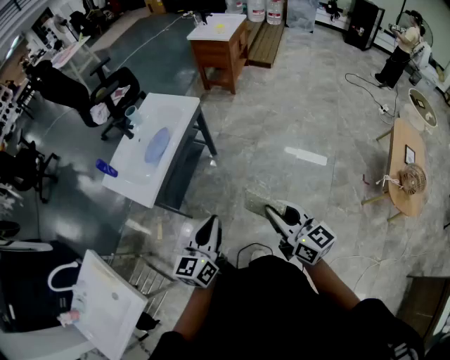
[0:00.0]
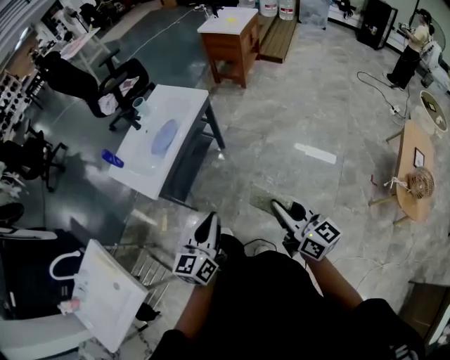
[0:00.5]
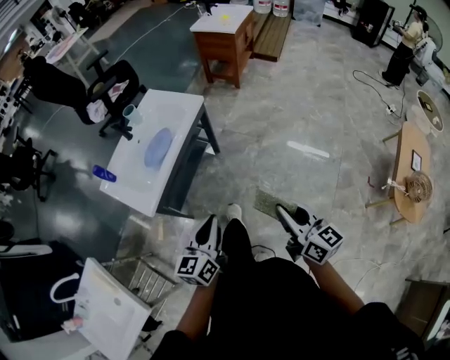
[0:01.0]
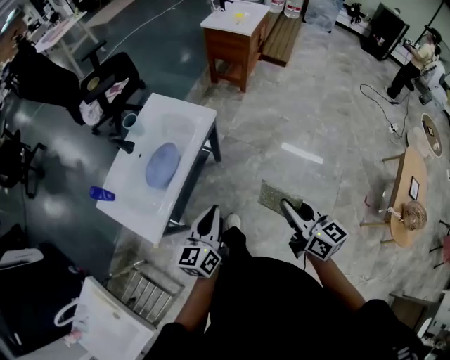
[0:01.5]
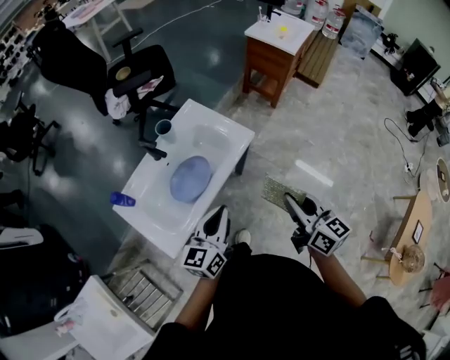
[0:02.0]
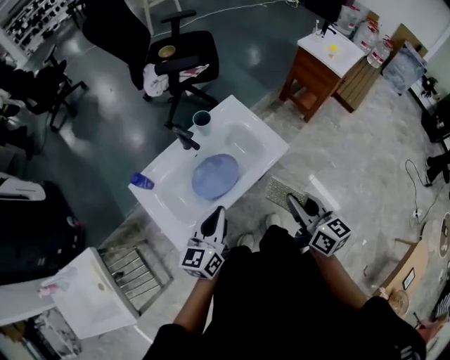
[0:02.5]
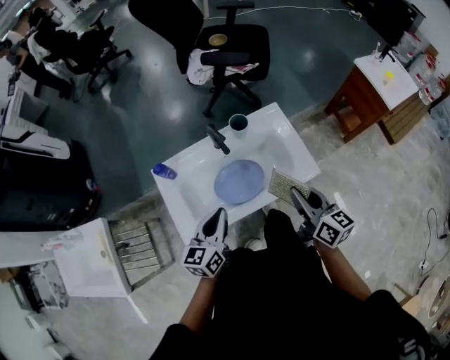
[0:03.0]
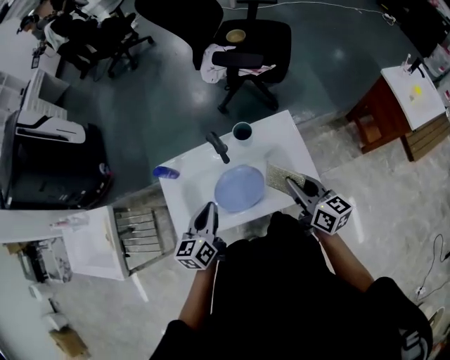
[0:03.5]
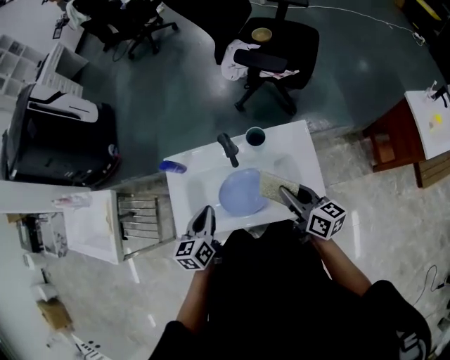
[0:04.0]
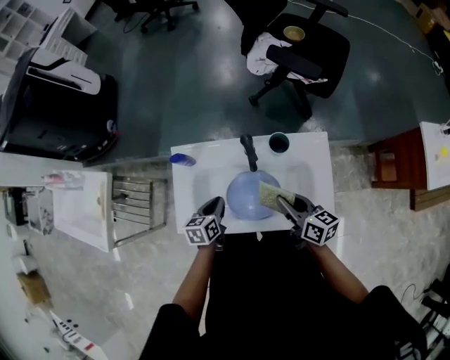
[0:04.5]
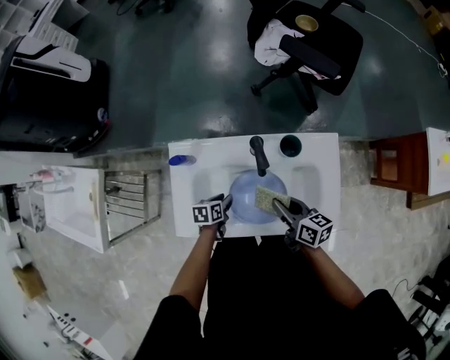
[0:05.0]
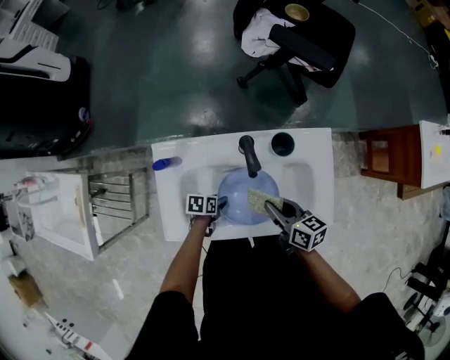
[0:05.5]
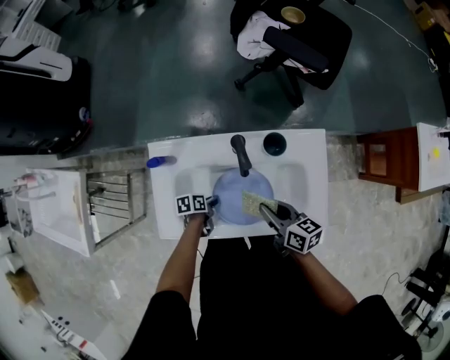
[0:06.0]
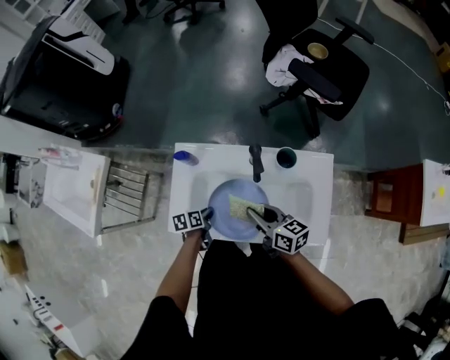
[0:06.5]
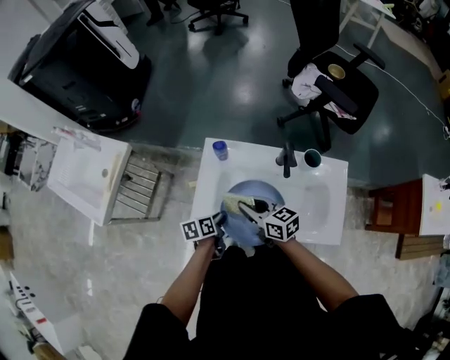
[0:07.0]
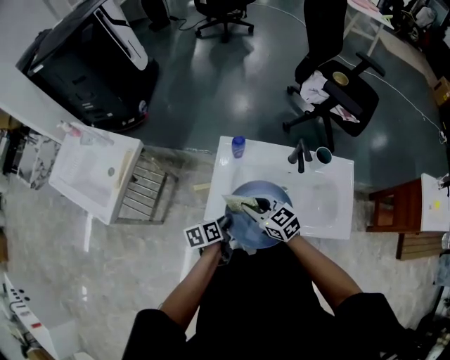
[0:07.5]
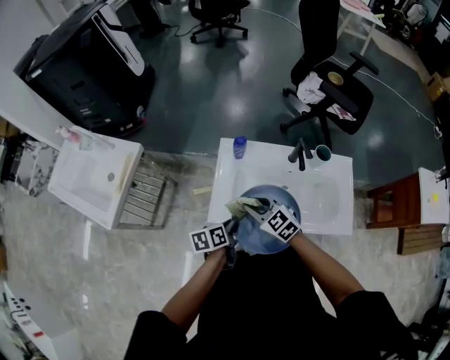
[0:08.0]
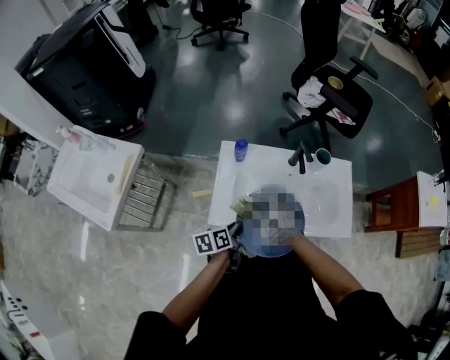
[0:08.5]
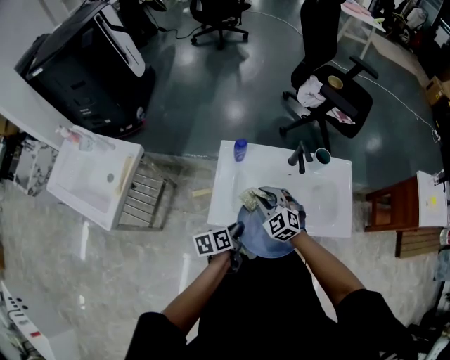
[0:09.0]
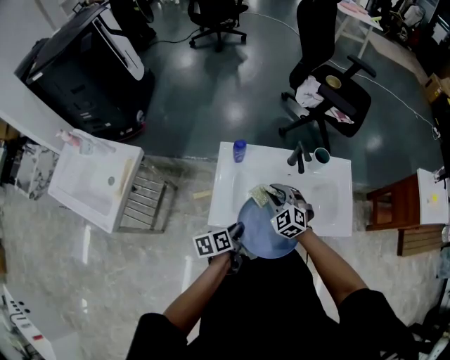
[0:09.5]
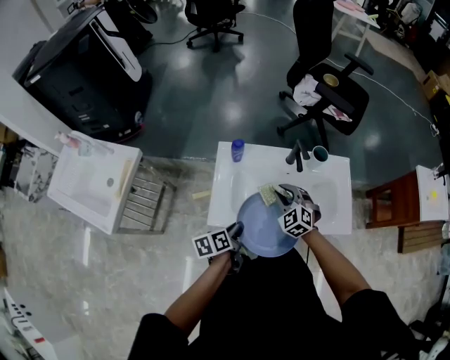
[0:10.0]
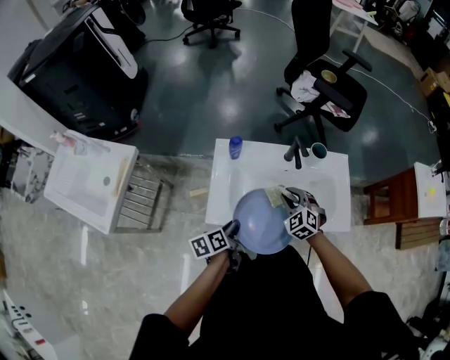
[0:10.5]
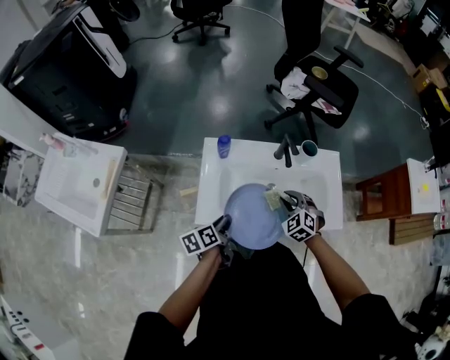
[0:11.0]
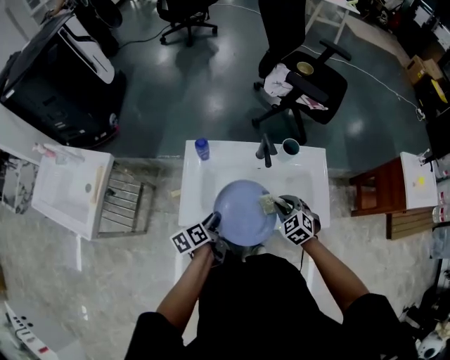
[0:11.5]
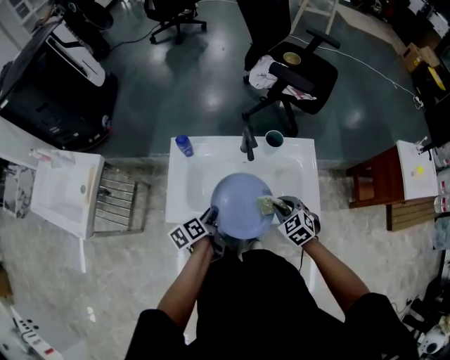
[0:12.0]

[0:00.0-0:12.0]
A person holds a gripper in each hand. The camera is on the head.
0:00.0 to 0:02.0: Both grippers are carried forward, some 40 cm.
0:02.0 to 0:04.0: The right gripper moves some 40 cm, and changes its angle by approximately 50 degrees. The left gripper changes place by approximately 25 cm, and turns by approximately 60 degrees.
0:04.0 to 0:06.0: The left gripper goes roughly 30 cm downward, swivels approximately 50 degrees, and opens, then closes once more; the right gripper travels downward by roughly 15 cm.
0:06.0 to 0:08.0: The right gripper moves about 30 cm, and twists about 60 degrees counterclockwise, seen from behind; the left gripper moves upward, some 20 cm, and turns by roughly 30 degrees.
0:08.0 to 0:10.0: The right gripper travels to the right and forward by about 15 cm, and swivels roughly 30 degrees.
0:10.0 to 0:12.0: The left gripper moves to the right, approximately 10 cm. The right gripper is displaced to the right by approximately 20 cm, and turns by roughly 20 degrees.

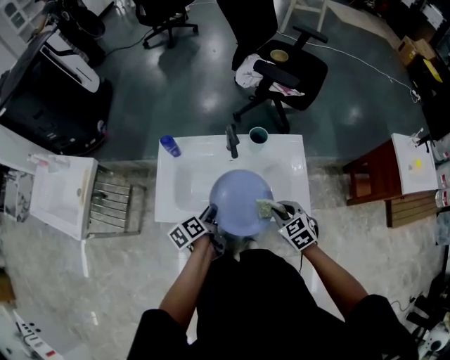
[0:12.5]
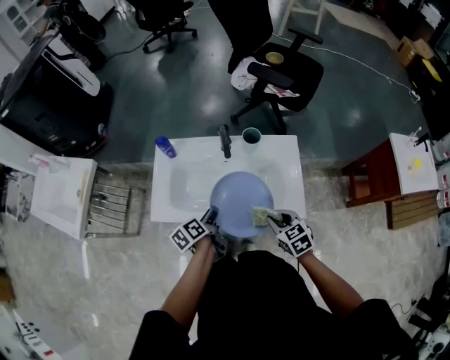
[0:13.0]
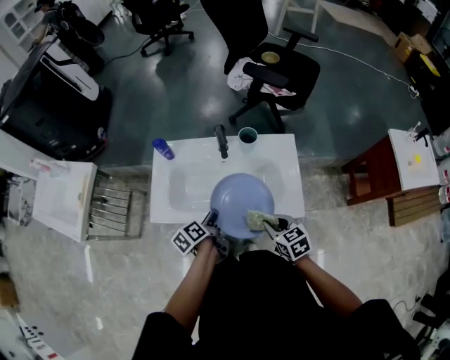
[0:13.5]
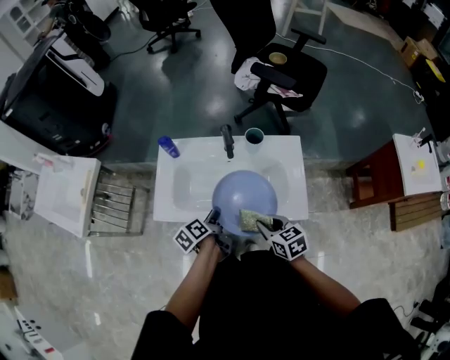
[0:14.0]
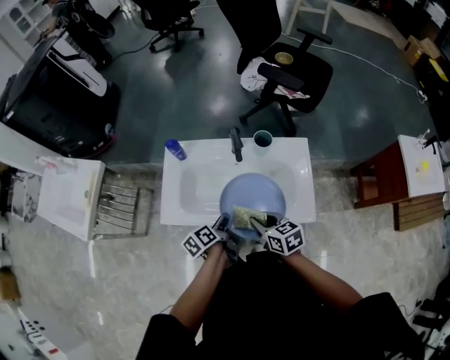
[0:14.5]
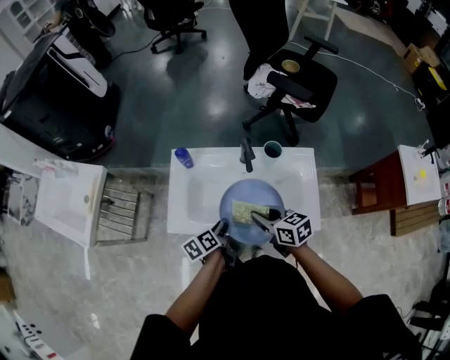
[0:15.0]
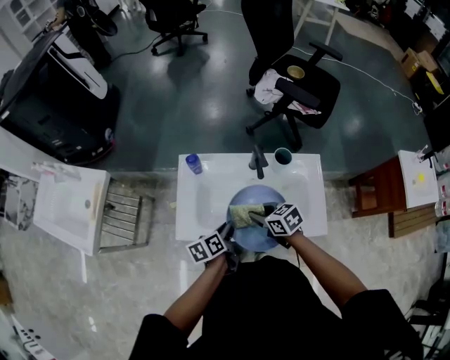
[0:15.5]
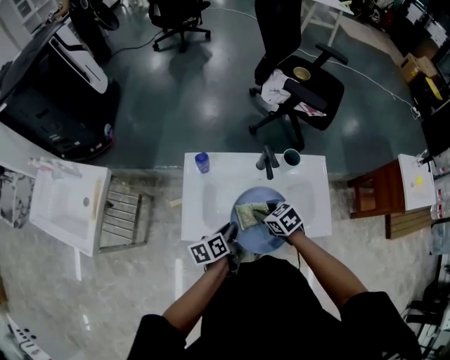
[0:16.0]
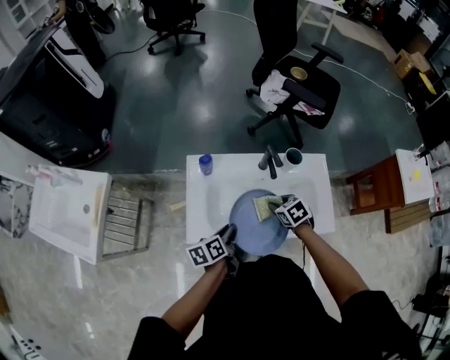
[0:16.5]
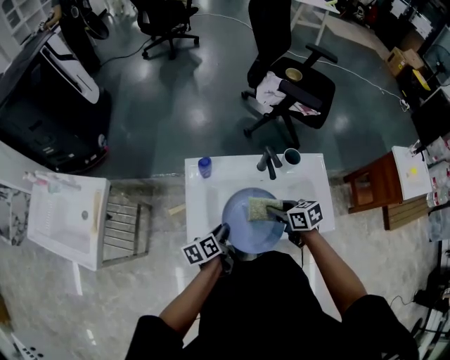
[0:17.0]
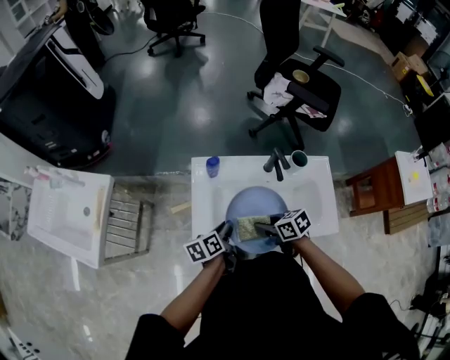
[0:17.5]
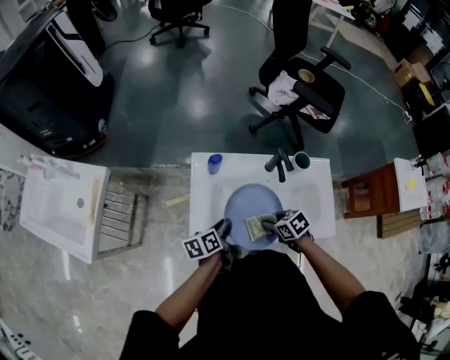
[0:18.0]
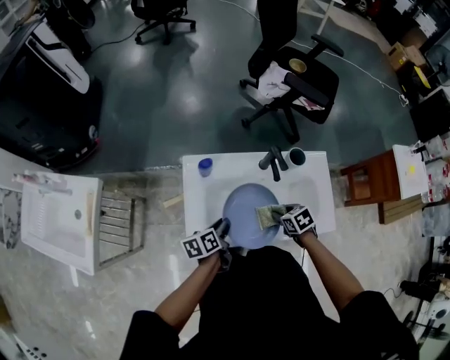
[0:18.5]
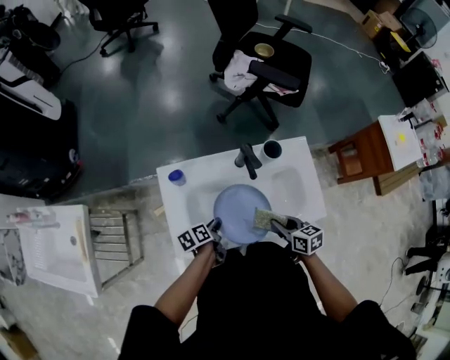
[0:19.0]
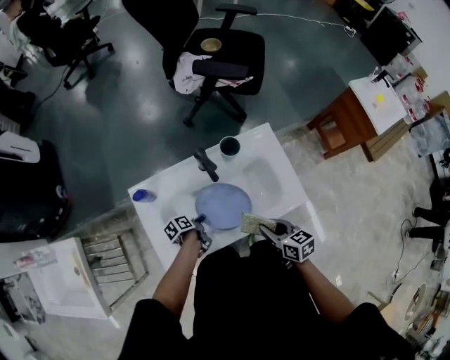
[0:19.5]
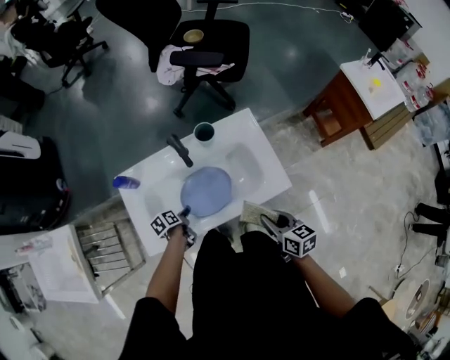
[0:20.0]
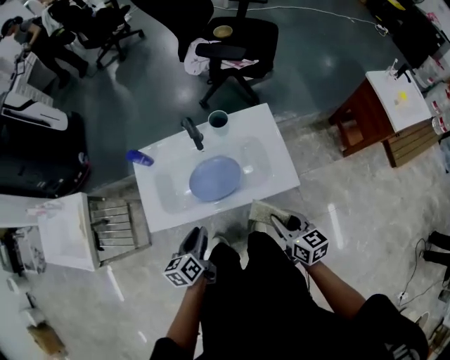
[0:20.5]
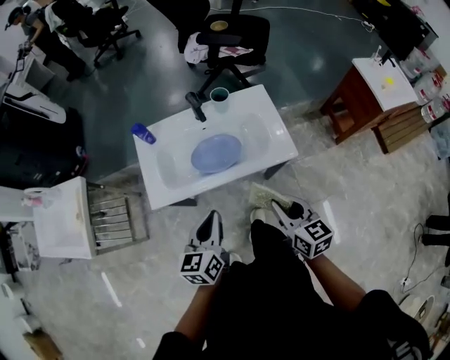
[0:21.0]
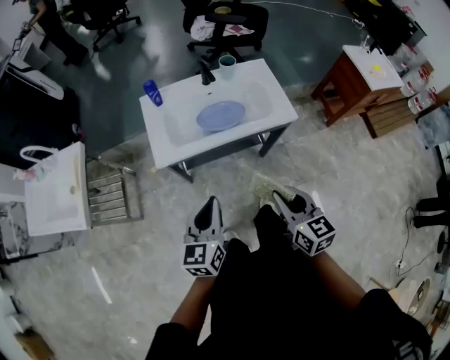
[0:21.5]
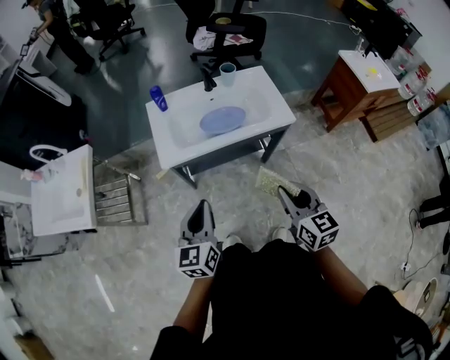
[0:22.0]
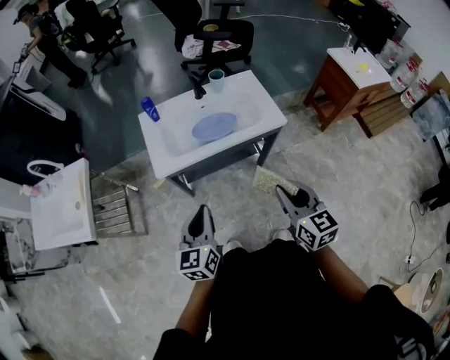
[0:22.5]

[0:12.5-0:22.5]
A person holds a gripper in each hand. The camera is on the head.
0:12.5 to 0:14.5: The right gripper goes some 10 cm to the left, and swivels approximately 30 degrees.
0:14.5 to 0:16.5: The left gripper is displaced to the left and forward by some 10 cm, and turns by roughly 20 degrees. Meanwhile the right gripper travels forward and downward by about 15 cm, and changes its angle by some 30 degrees.
0:16.5 to 0:18.5: The right gripper moves roughly 10 cm to the left and comes back, while the left gripper shifts some 5 cm forward.
0:18.5 to 0:20.5: Both grippers move to the right, backward and upward, roughly 25 cm. The right gripper angles its fingers upward, by roughly 40 degrees, while the left gripper turns by about 20 degrees.
0:20.5 to 0:22.5: The right gripper heads backward, upward and to the left, covering about 30 cm, and rotates some 20 degrees. The left gripper heads backward and upward, covering approximately 25 cm, swivels approximately 30 degrees, and closes.

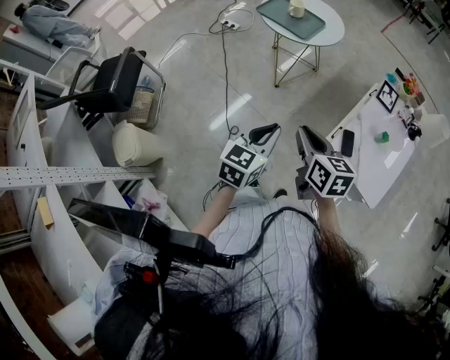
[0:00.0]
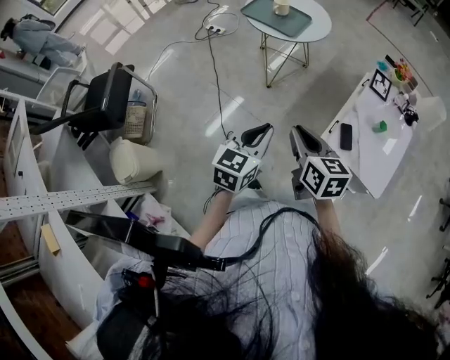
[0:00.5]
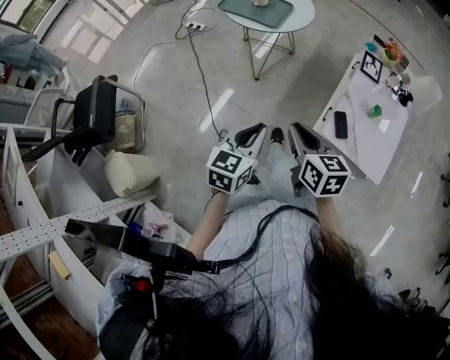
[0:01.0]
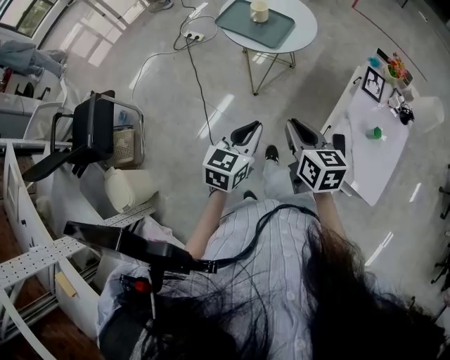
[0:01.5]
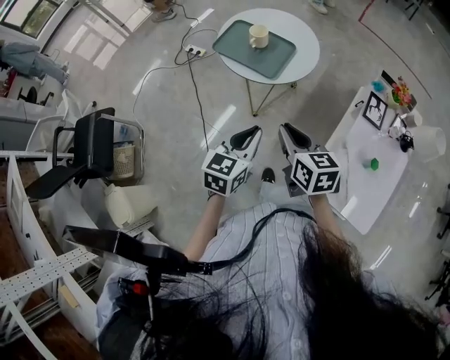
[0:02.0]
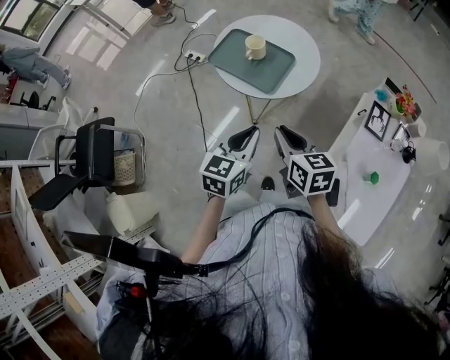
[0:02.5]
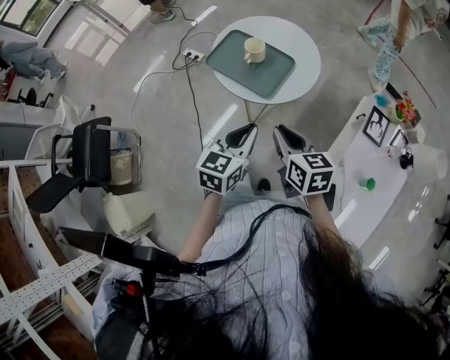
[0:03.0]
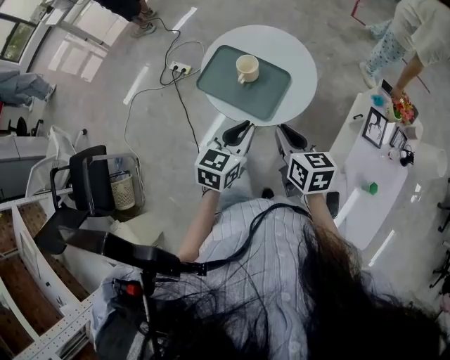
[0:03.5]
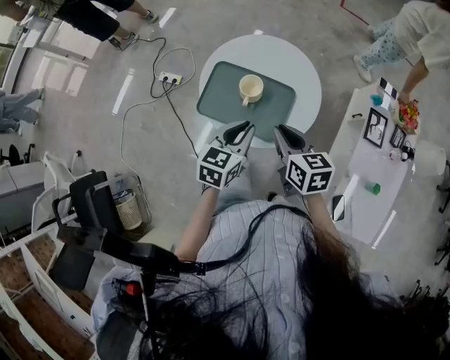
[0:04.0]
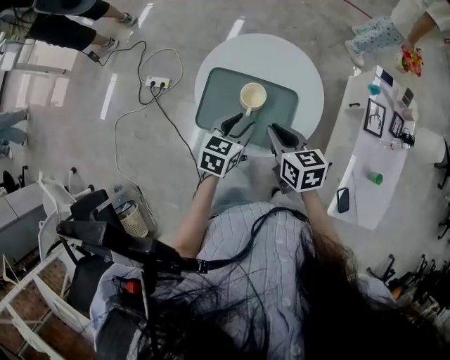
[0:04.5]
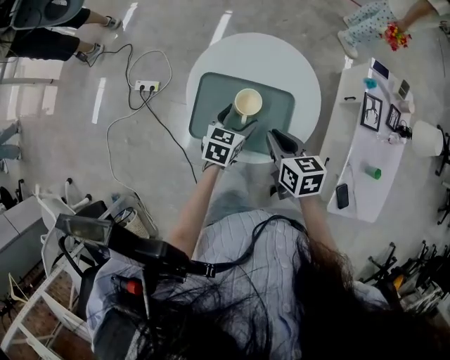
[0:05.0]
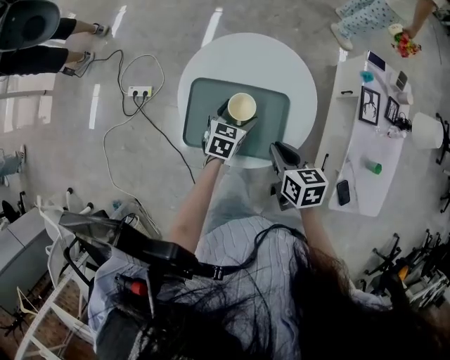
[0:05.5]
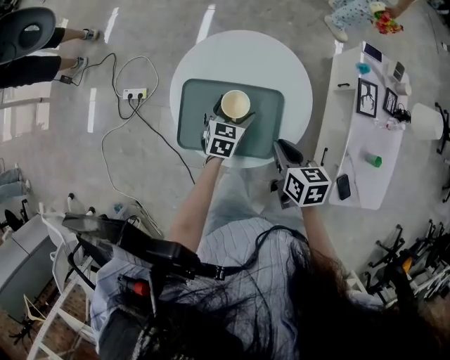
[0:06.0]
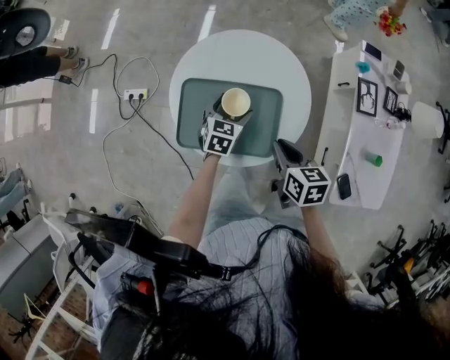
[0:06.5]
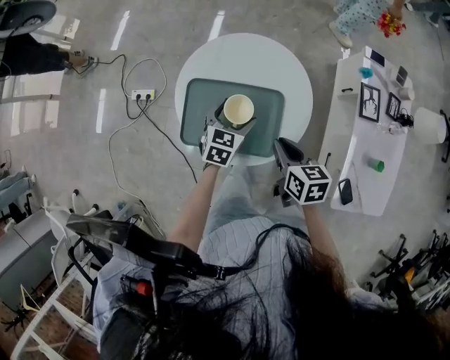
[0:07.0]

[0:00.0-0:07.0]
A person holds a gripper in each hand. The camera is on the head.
0:00.0 to 0:02.0: The grippers both shift forward by approximately 30 cm.
0:02.0 to 0:03.5: The two grippers go roughly 20 cm forward.
0:03.5 to 0:05.0: The left gripper travels forward and downward by approximately 25 cm, rotates roughly 20 degrees, and opens. Meanwhile the right gripper travels forward, to the left and downward by approximately 20 cm.
0:05.0 to 0:07.0: The right gripper travels to the right by some 5 cm.
